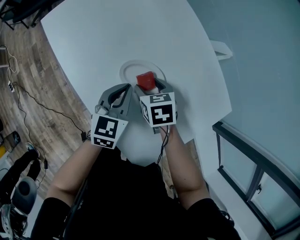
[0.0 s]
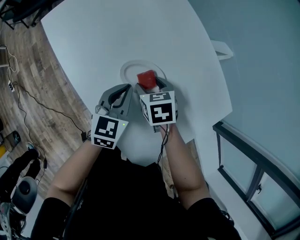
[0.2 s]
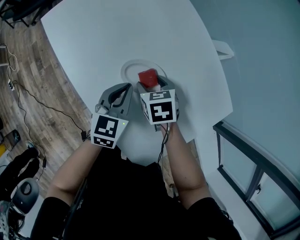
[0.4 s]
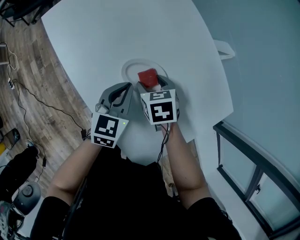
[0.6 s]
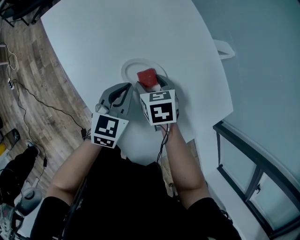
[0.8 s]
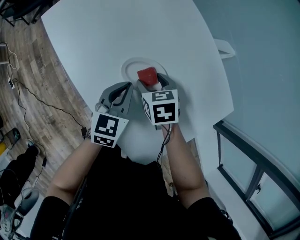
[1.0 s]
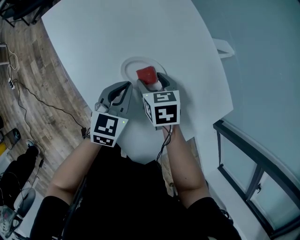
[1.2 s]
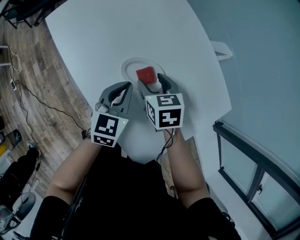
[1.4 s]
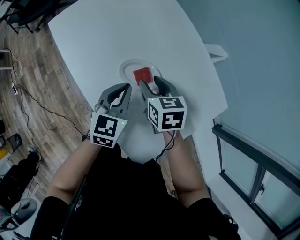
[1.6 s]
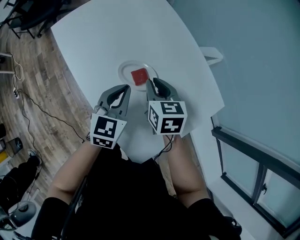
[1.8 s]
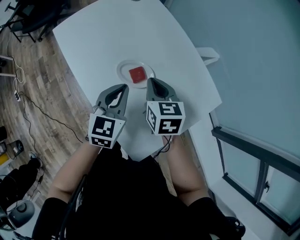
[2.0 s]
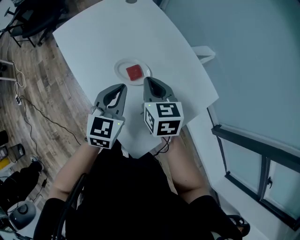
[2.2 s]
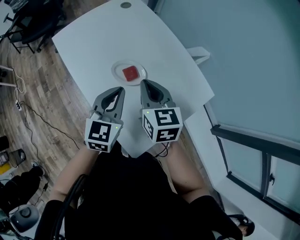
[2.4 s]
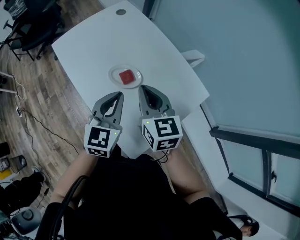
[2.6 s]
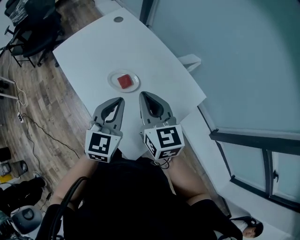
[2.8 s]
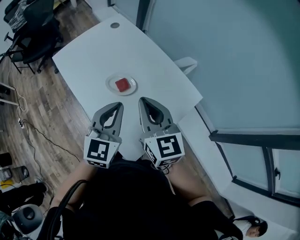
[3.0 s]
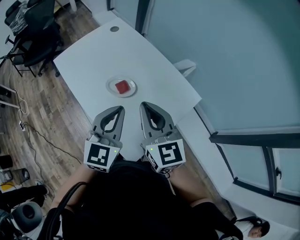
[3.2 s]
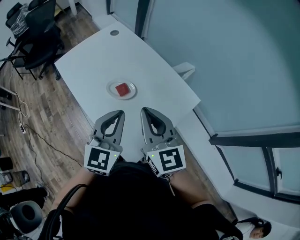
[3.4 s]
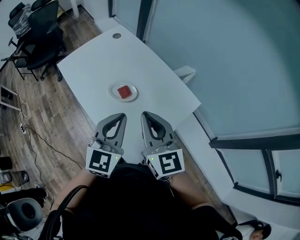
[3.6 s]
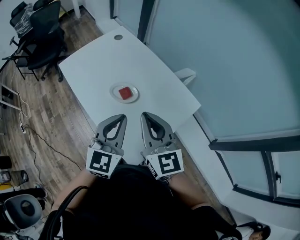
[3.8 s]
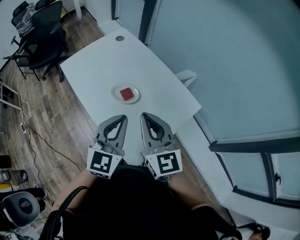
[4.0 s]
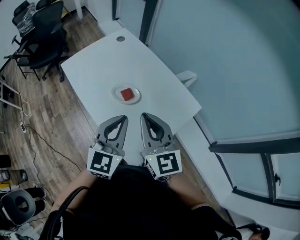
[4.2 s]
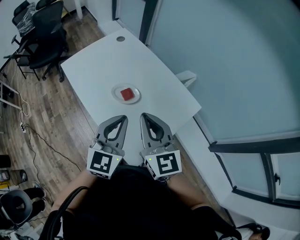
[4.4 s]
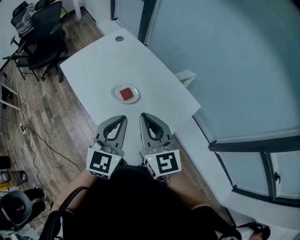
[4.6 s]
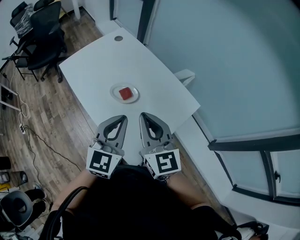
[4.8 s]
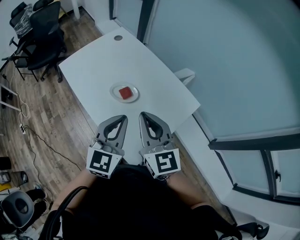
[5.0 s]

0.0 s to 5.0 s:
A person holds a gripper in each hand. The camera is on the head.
0.0 to 1.6 s: The right gripper goes approximately 5 cm upward.
1.6 to 3.4 s: The two grippers go approximately 25 cm upward and backward. The left gripper rotates about 20 degrees, while the right gripper tilts its fingers roughly 40 degrees upward, and closes up.
3.4 to 5.0 s: The grippers move only a little.

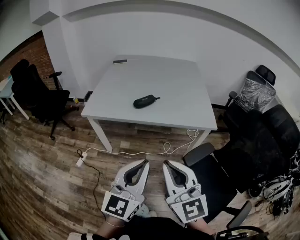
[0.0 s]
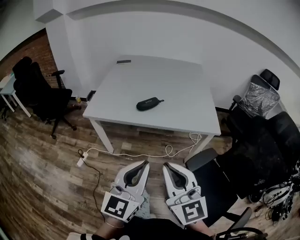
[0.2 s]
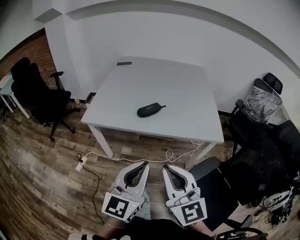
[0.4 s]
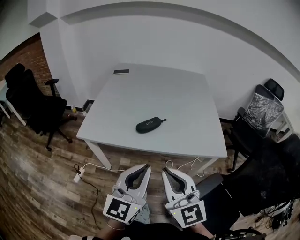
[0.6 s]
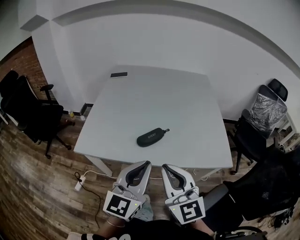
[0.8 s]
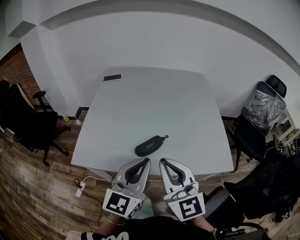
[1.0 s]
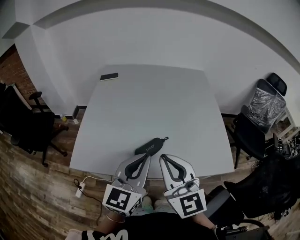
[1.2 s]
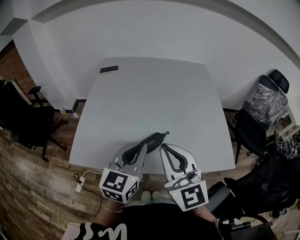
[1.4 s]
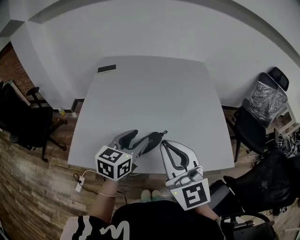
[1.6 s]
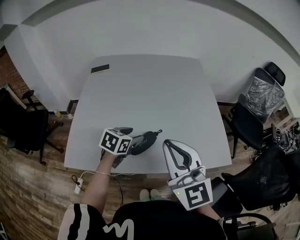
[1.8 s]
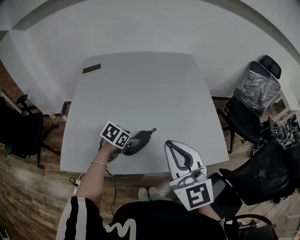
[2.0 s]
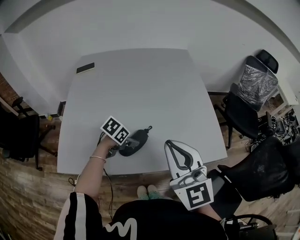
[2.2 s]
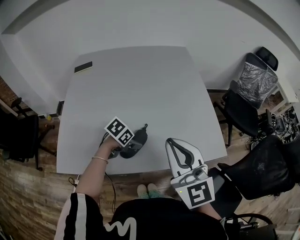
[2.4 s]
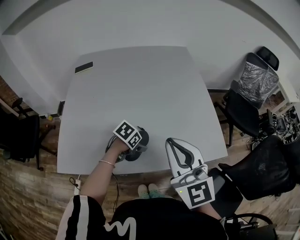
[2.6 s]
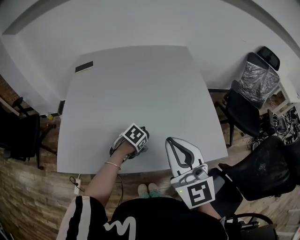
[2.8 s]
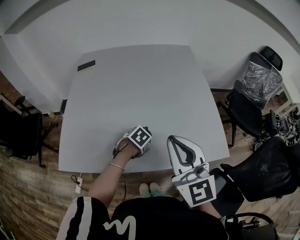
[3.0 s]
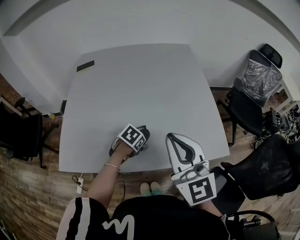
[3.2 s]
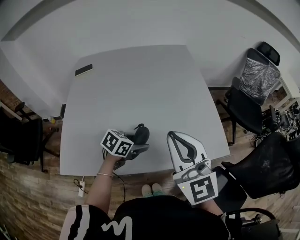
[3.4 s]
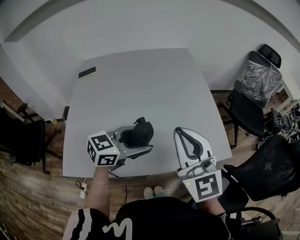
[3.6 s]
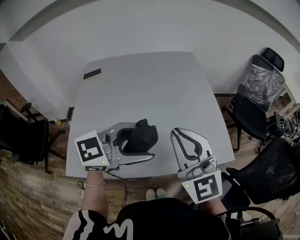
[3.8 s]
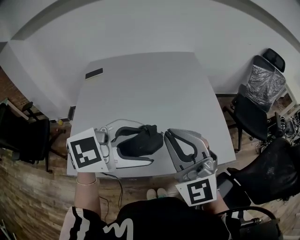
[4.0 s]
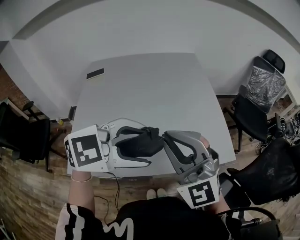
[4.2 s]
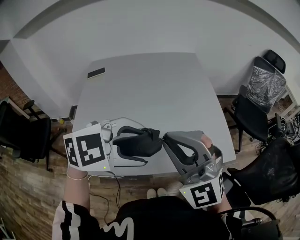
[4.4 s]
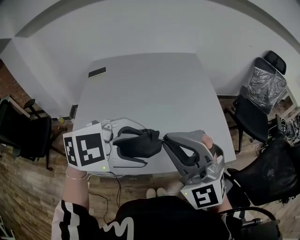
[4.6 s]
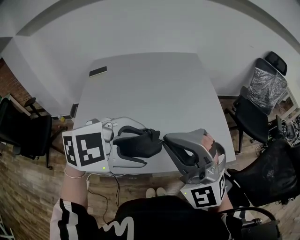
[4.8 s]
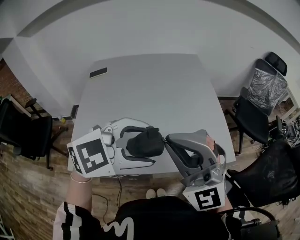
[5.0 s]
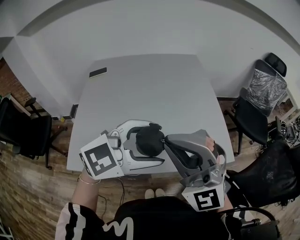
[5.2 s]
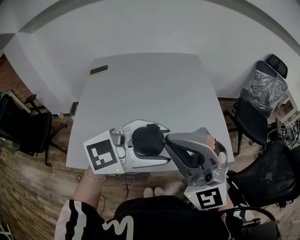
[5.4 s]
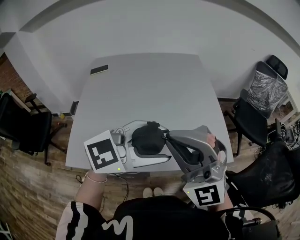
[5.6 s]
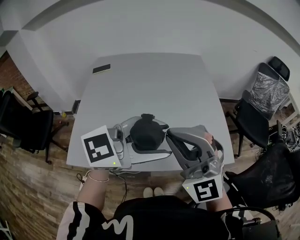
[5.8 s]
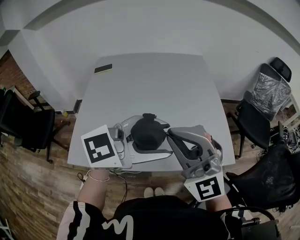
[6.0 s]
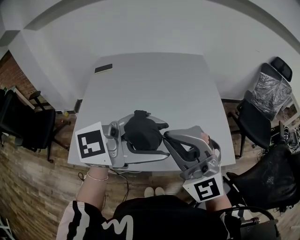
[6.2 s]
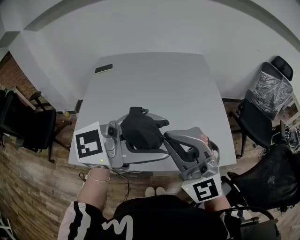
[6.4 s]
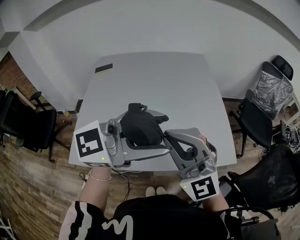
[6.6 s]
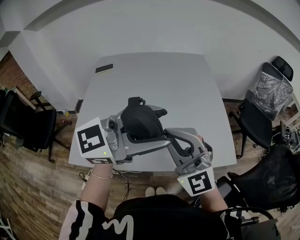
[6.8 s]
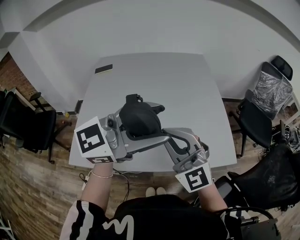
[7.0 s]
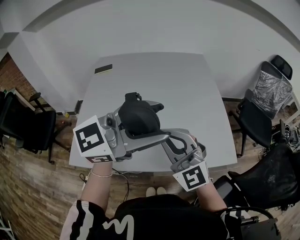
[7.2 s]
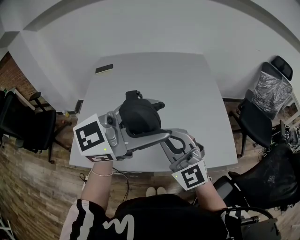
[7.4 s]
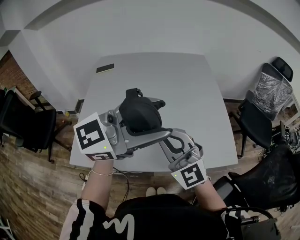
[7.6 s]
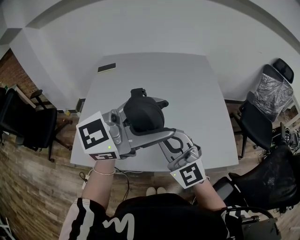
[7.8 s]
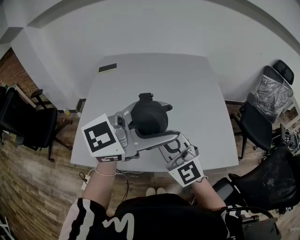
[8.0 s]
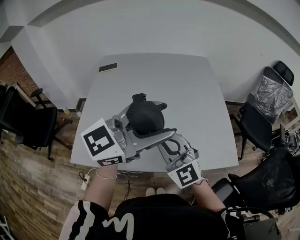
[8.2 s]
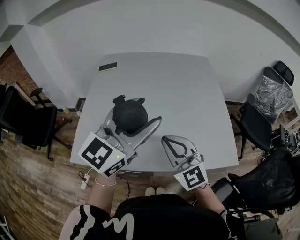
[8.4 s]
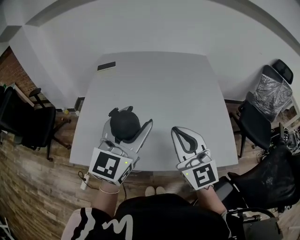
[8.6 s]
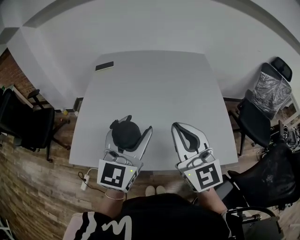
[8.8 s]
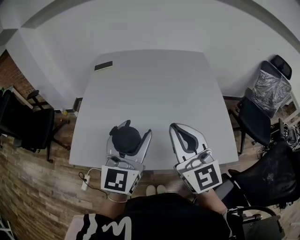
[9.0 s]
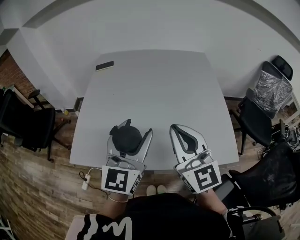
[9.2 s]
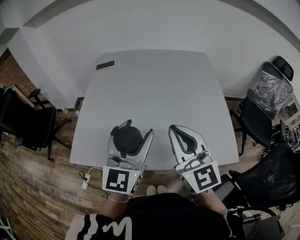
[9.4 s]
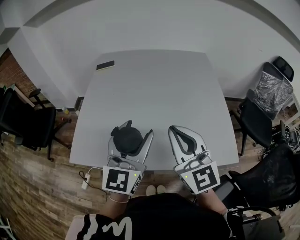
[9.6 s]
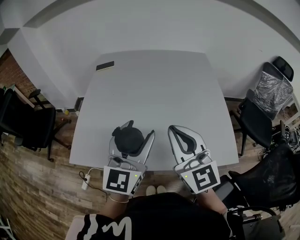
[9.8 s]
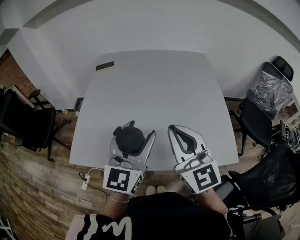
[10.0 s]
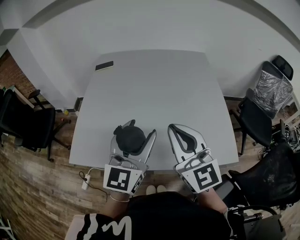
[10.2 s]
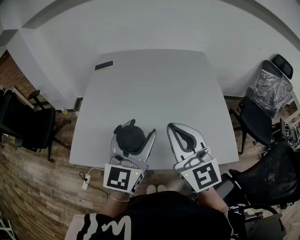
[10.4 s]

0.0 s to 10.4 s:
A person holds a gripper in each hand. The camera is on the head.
0.0 to 1.4 s: The pair of grippers is taken forward, approximately 40 cm.
1.4 to 3.0 s: The right gripper moves about 10 cm. The left gripper travels downward by approximately 30 cm, points its fingers roughly 70 degrees further downward, and opens its fingers.
3.0 to 4.4 s: The left gripper shifts approximately 35 cm upward, and rolls clockwise, seen from behind, by about 60 degrees, while the right gripper moves upward, roughly 5 cm, and turns by roughly 40 degrees.
4.4 to 6.0 s: The left gripper shifts by roughly 5 cm, and points its fingers approximately 30 degrees further upward.
6.0 to 7.4 s: The left gripper heads upward, covering approximately 5 cm; the right gripper shifts about 10 cm downward.
7.4 to 9.0 s: The left gripper moves downward and to the left, about 15 cm, and changes its angle by about 50 degrees; the right gripper rotates some 30 degrees.
9.0 to 10.4 s: There are only small adjustments of the grippers.

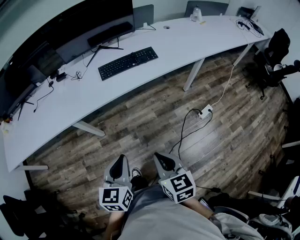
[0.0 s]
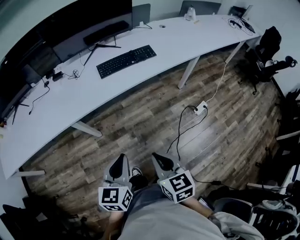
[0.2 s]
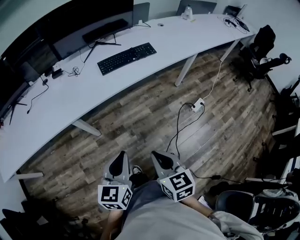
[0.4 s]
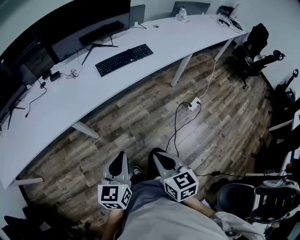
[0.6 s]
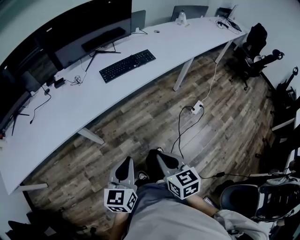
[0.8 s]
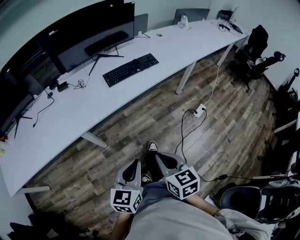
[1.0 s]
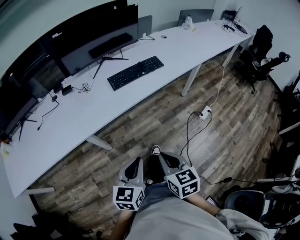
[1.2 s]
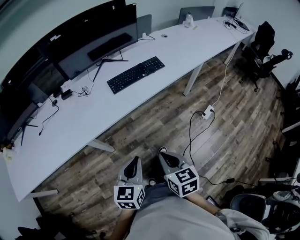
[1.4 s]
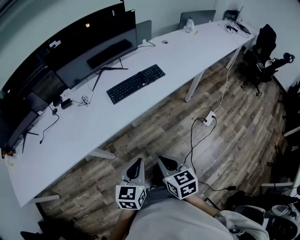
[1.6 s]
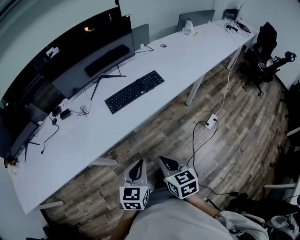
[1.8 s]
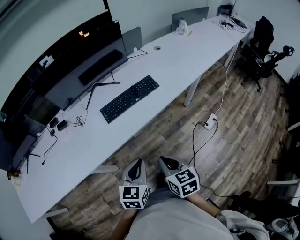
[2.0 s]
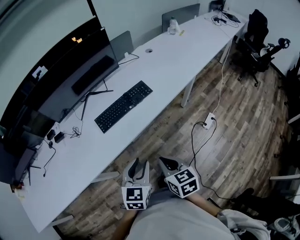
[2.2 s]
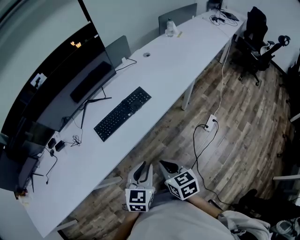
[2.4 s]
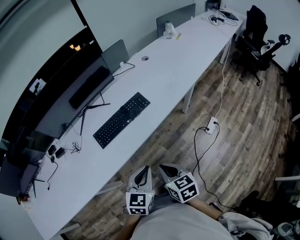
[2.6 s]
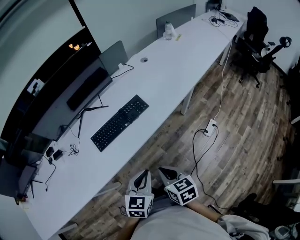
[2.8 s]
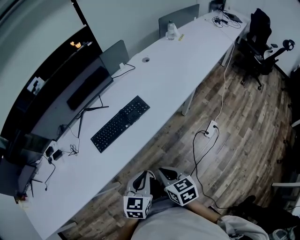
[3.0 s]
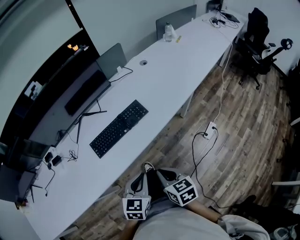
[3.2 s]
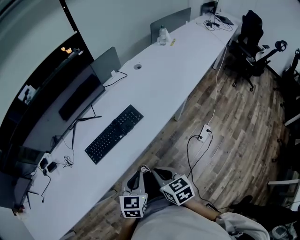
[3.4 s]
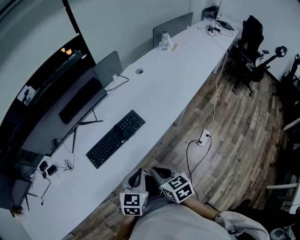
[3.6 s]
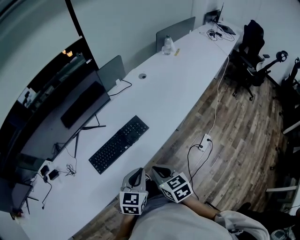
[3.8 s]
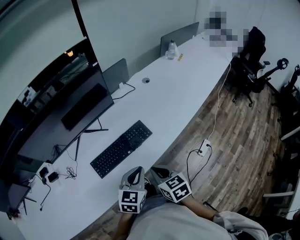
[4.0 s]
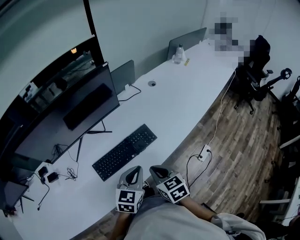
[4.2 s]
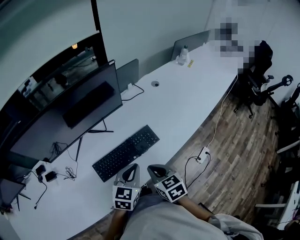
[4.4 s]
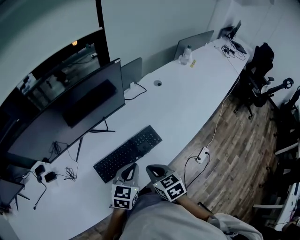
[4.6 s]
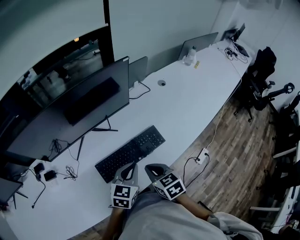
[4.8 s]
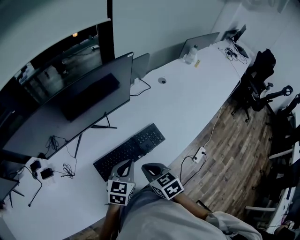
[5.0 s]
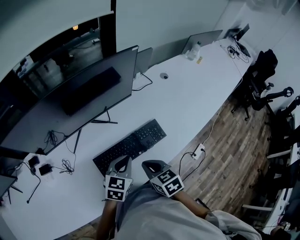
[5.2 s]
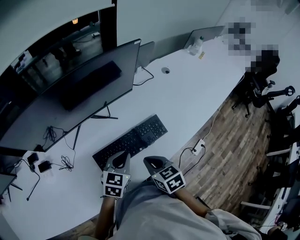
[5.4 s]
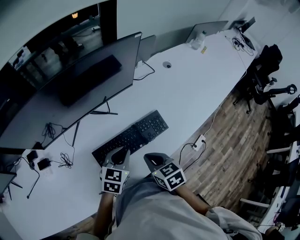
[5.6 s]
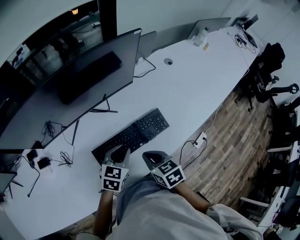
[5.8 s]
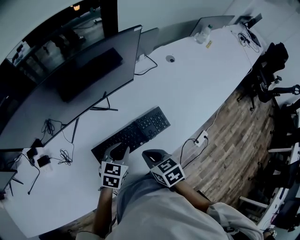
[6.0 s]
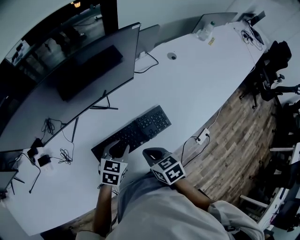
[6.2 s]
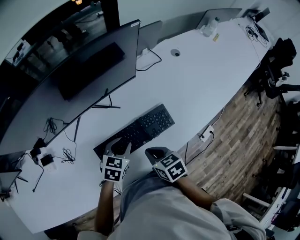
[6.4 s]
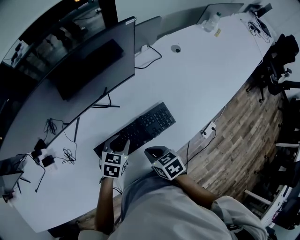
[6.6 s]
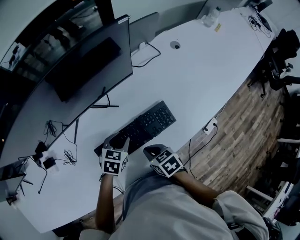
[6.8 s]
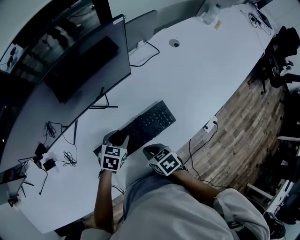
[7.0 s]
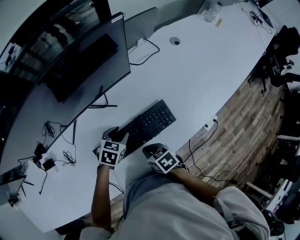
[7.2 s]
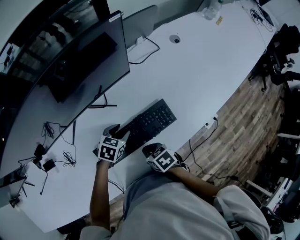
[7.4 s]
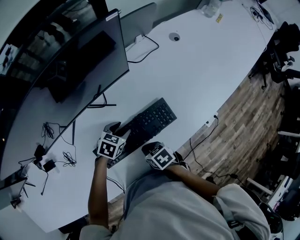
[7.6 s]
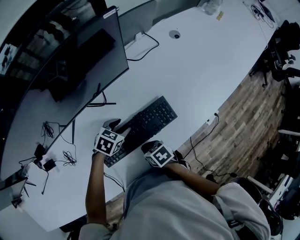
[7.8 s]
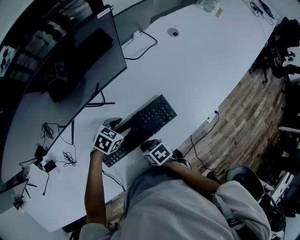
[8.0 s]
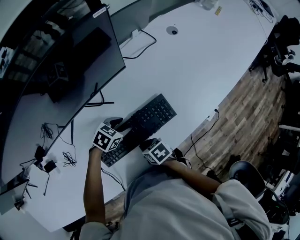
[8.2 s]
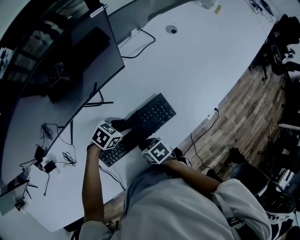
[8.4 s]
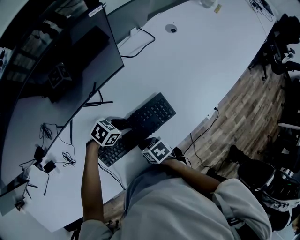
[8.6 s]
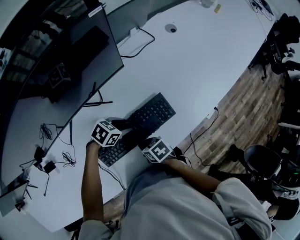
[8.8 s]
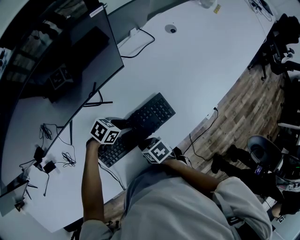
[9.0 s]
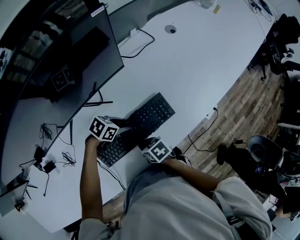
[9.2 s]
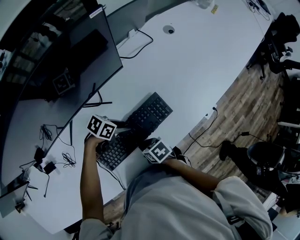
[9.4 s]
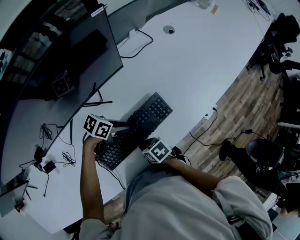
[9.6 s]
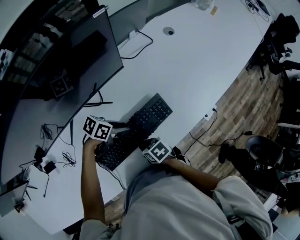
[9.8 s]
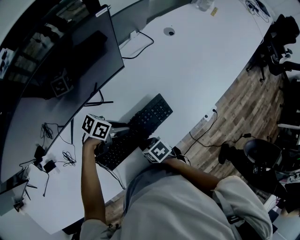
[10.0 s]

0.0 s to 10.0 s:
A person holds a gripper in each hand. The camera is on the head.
0.0 to 1.4 s: The two grippers go about 15 cm to the left.
1.4 to 2.8 s: Both grippers travel together forward and to the right, roughly 30 cm.
2.8 to 4.2 s: Both grippers travel together forward, approximately 25 cm.
4.2 to 5.8 s: Both grippers move to the left, forward and downward, some 15 cm.
5.8 to 7.2 s: The left gripper travels downward and forward by approximately 15 cm. Meanwhile the right gripper goes some 10 cm downward, and rotates some 20 degrees.
7.2 to 8.6 s: The left gripper changes its angle by approximately 30 degrees. Meanwhile the right gripper moves downward, about 5 cm.
8.6 to 10.0 s: The left gripper swivels approximately 20 degrees.
